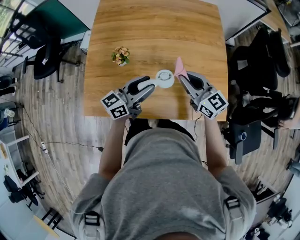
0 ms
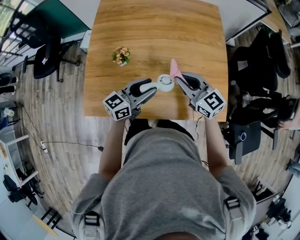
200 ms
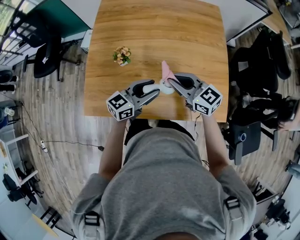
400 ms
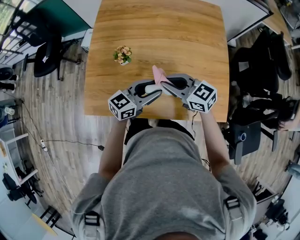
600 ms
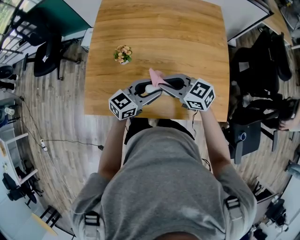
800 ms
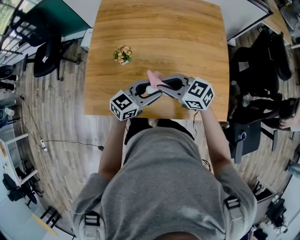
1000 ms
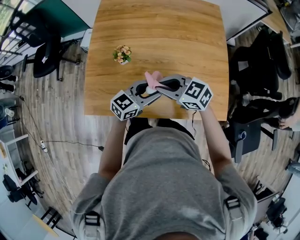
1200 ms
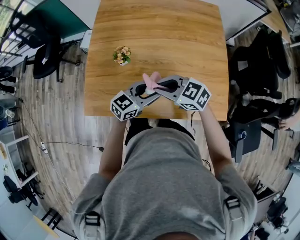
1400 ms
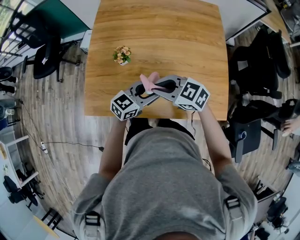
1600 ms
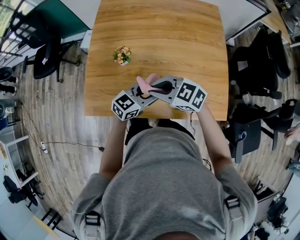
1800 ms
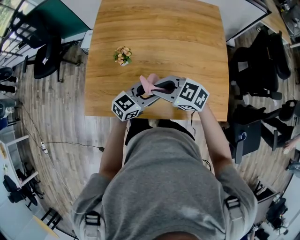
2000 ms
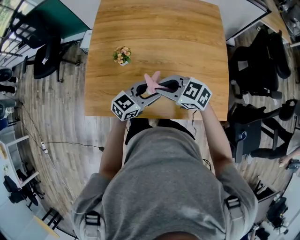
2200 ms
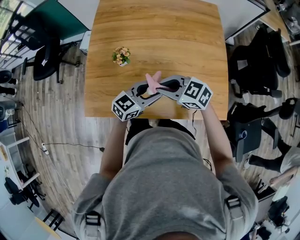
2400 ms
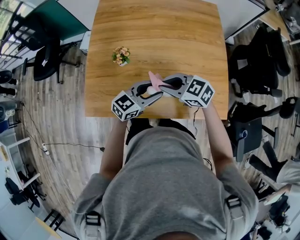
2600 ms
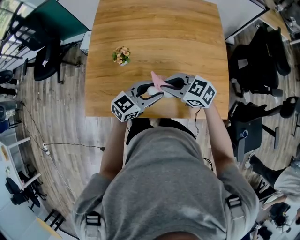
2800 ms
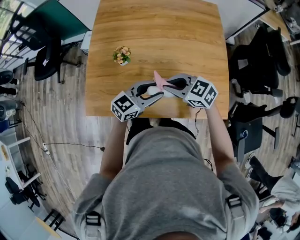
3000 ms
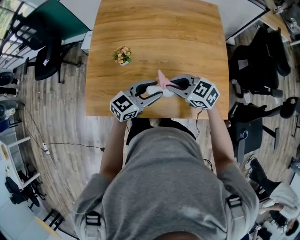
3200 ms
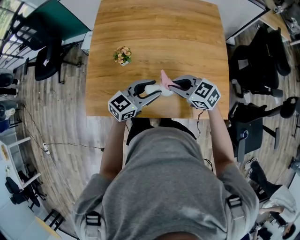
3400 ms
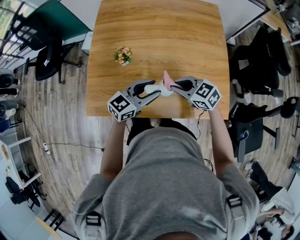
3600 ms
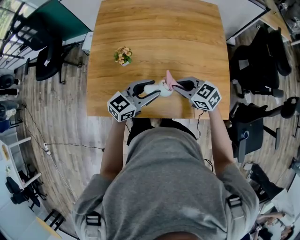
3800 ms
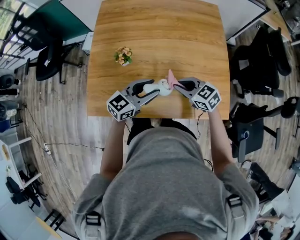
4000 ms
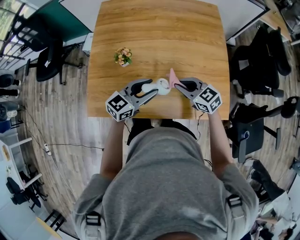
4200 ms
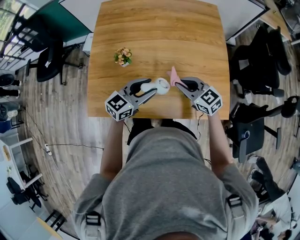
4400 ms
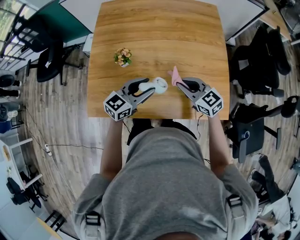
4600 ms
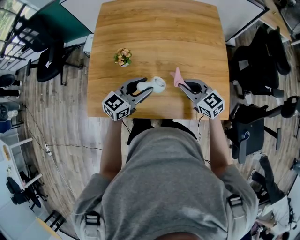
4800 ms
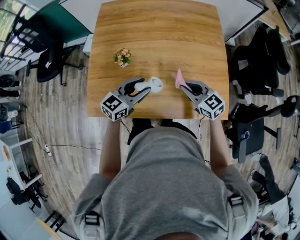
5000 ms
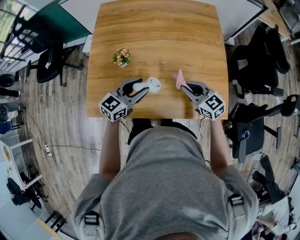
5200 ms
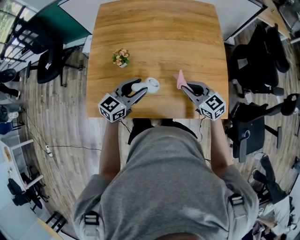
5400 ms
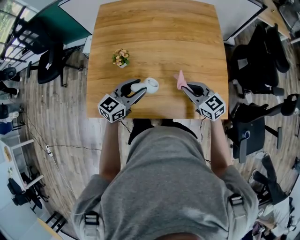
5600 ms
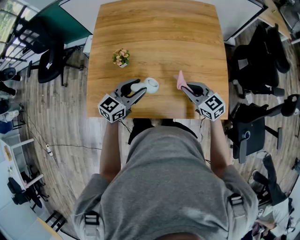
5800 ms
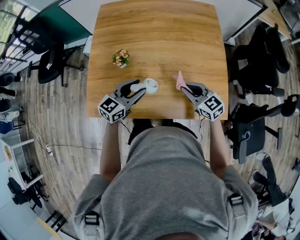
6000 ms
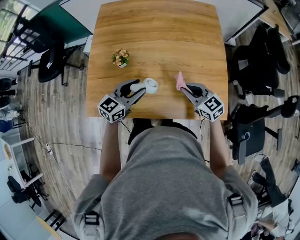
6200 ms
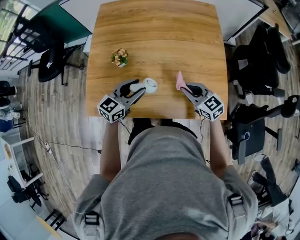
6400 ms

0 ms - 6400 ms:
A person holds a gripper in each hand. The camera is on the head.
0 ms - 1600 ms: The right gripper moves approximately 15 cm, and swivels approximately 40 degrees. The left gripper shifts by some 5 cm, and swivels approximately 20 degrees.
1600 ms - 3200 ms: The right gripper moves some 5 cm.
3200 ms - 4800 ms: The right gripper moves about 5 cm, and turns by roughly 20 degrees.
4800 ms - 6400 ms: The grippers make only small movements.

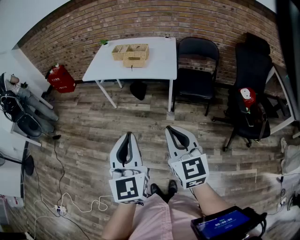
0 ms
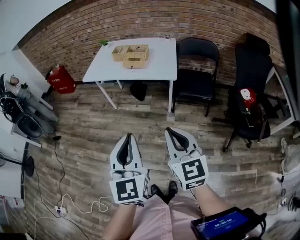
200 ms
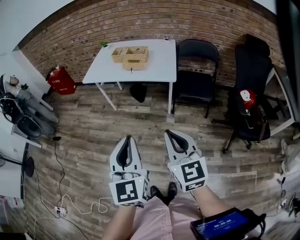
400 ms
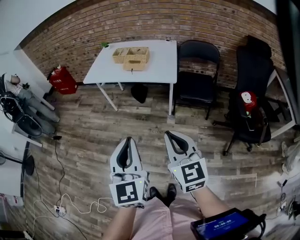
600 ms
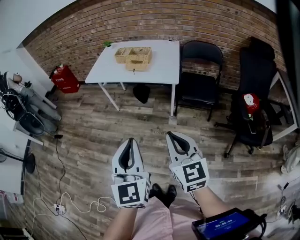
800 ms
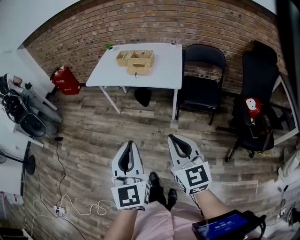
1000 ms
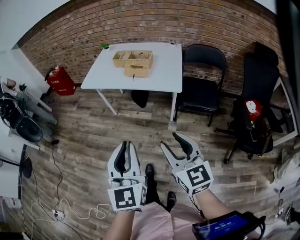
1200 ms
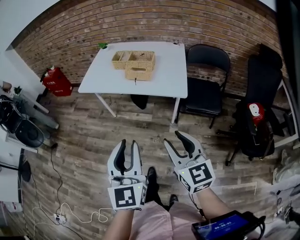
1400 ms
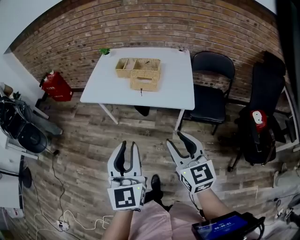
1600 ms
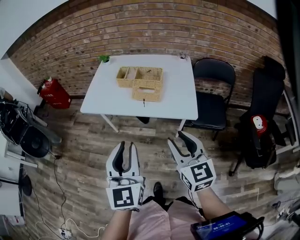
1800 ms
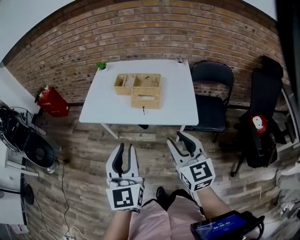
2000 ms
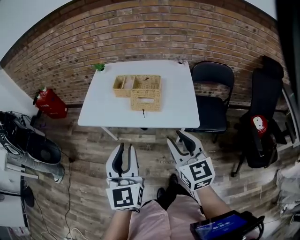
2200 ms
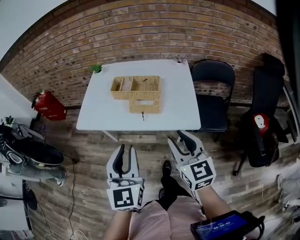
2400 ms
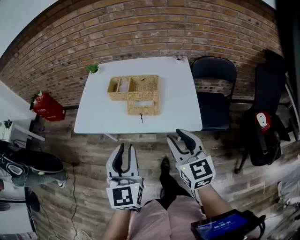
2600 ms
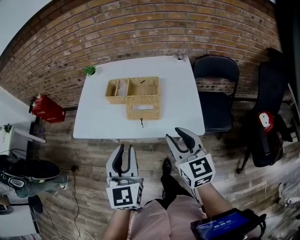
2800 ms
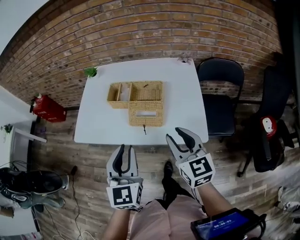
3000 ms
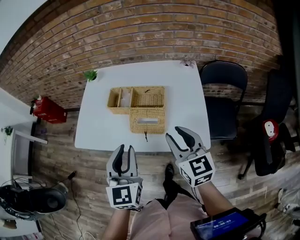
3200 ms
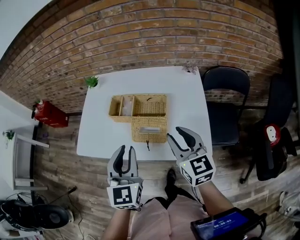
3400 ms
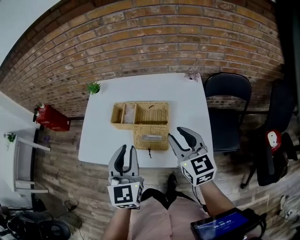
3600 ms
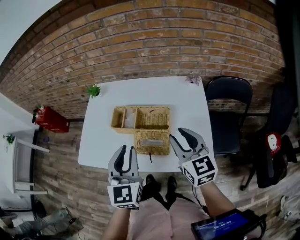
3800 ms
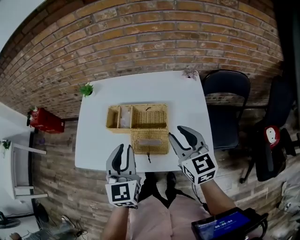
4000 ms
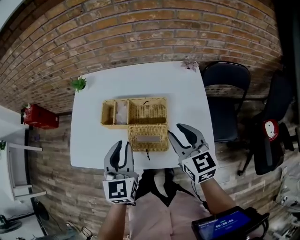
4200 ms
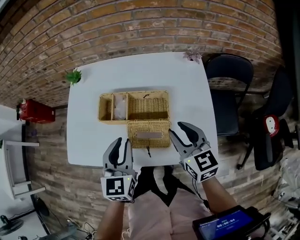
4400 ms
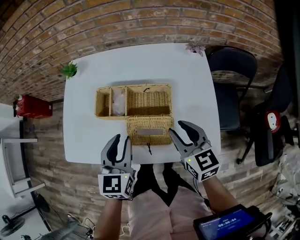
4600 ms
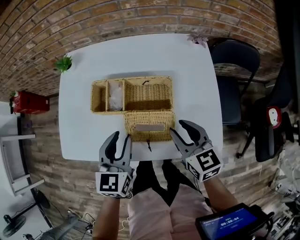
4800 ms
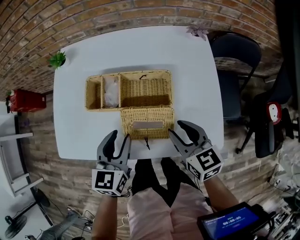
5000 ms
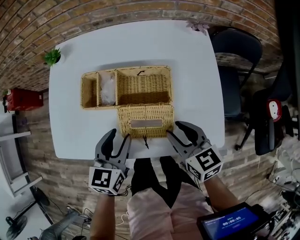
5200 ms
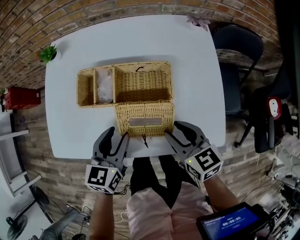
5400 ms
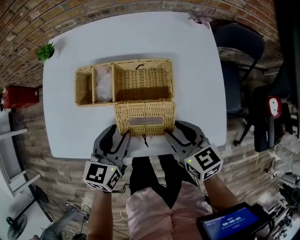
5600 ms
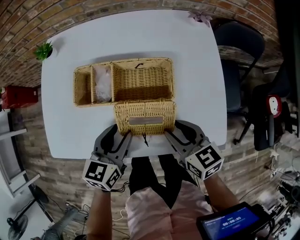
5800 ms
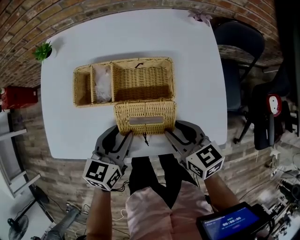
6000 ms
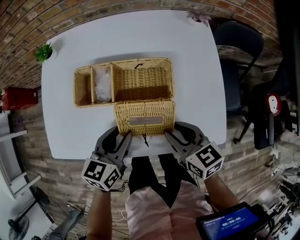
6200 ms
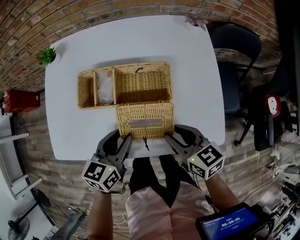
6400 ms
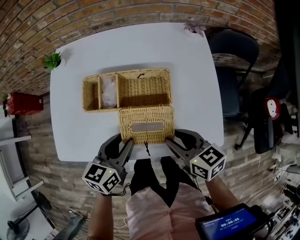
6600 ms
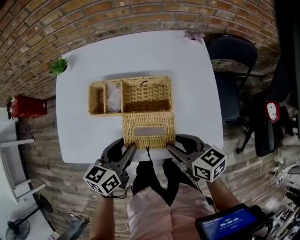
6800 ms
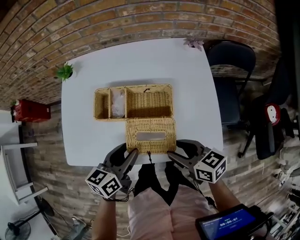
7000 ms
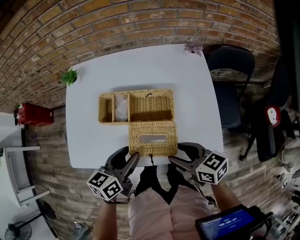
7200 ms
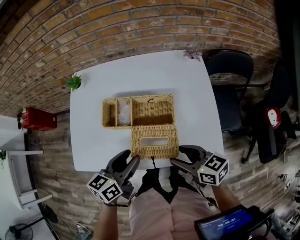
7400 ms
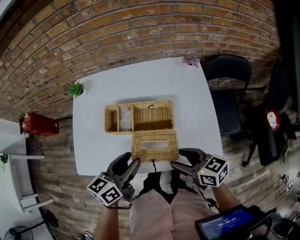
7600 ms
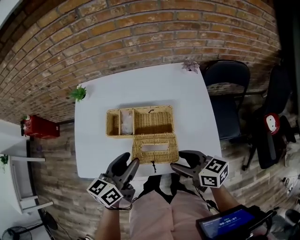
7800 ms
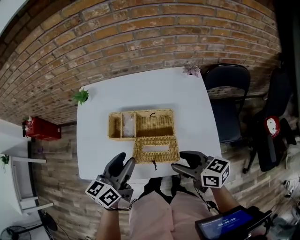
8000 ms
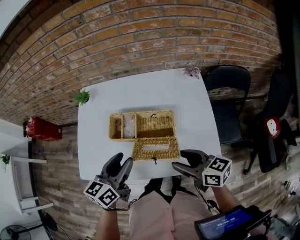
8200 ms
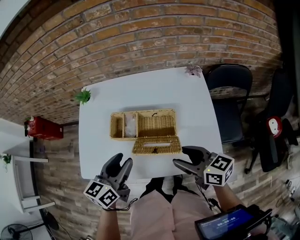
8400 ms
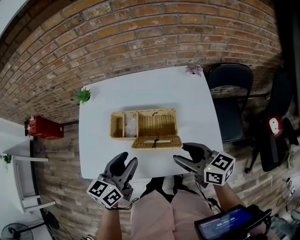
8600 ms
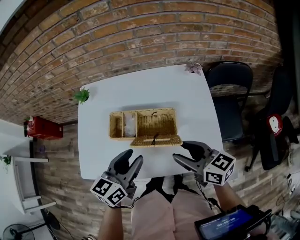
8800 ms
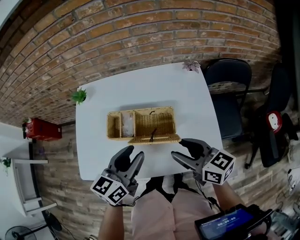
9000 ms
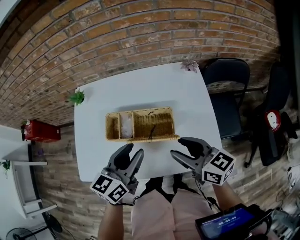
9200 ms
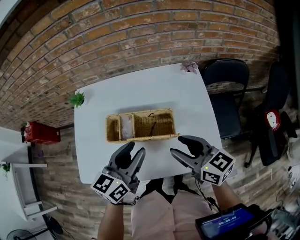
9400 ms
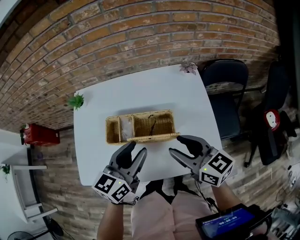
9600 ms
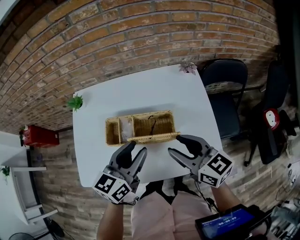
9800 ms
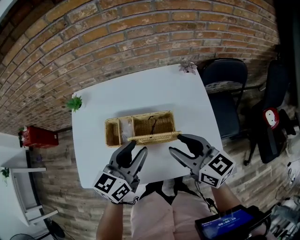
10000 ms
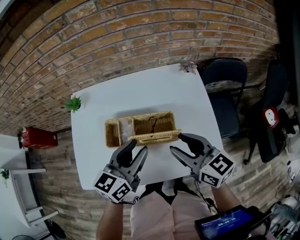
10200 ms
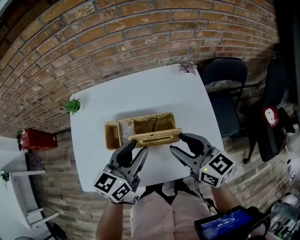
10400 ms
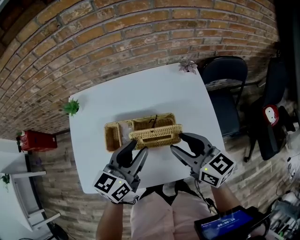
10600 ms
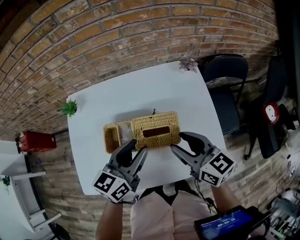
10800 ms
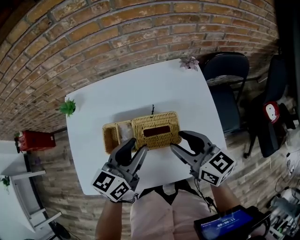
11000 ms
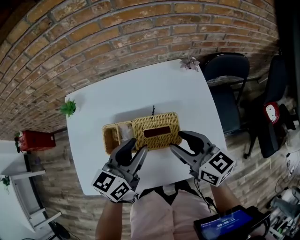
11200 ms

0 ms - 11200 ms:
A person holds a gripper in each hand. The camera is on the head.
0 ms - 1600 ms: Both grippers move forward, roughly 25 cm. The left gripper opens up. Meanwhile the right gripper opens.
1600 ms - 3200 ms: The two grippers go roughly 30 cm forward.
3200 ms - 4800 ms: The right gripper moves downward and forward, some 15 cm; the left gripper goes some 20 cm forward and downward.
4800 ms - 6400 ms: The two grippers go some 5 cm downward. The left gripper turns by some 20 degrees.
6400 ms - 8000 ms: The grippers both shift upward by some 10 cm. The right gripper opens its fingers.
8000 ms - 9600 ms: The right gripper moves forward and upward, some 10 cm. Meanwhile the left gripper shifts roughly 5 cm to the right.
9600 ms - 11200 ms: The grippers both shift forward by some 5 cm.

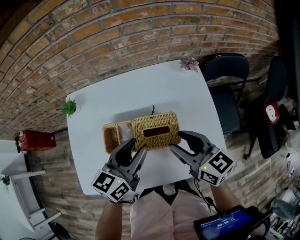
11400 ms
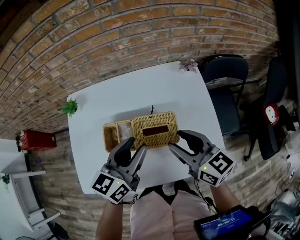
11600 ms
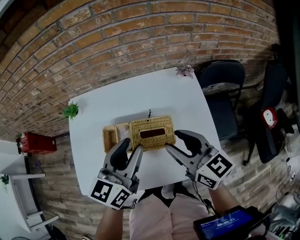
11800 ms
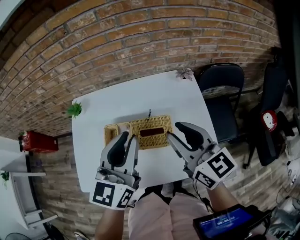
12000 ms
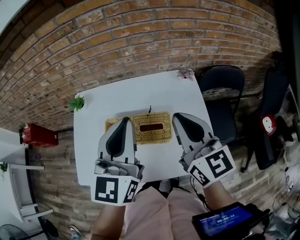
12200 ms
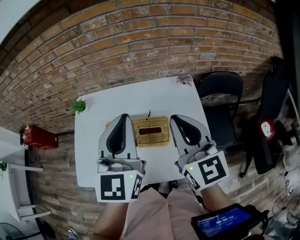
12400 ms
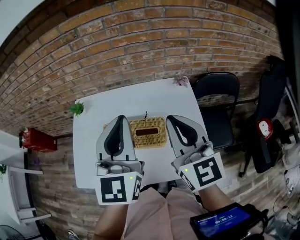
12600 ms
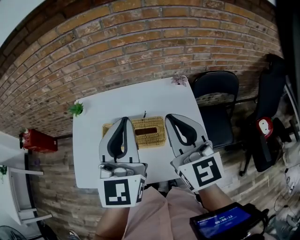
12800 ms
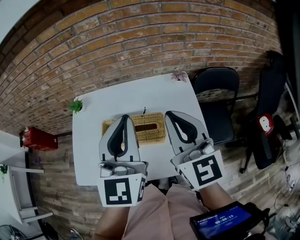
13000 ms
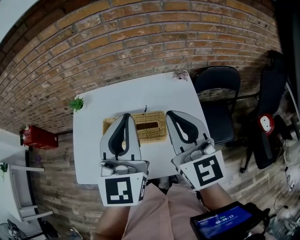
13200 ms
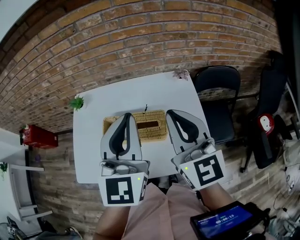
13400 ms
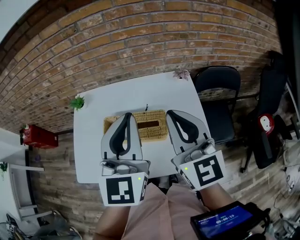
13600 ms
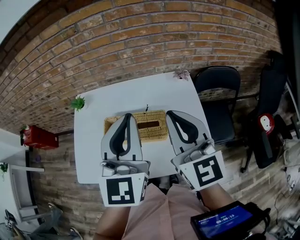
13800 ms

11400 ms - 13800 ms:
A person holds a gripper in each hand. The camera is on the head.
11400 ms - 12600 ms: The two grippers go approximately 20 cm upward. The left gripper rotates about 40 degrees, and closes its fingers, while the right gripper turns by approximately 30 degrees, and closes up.
12600 ms - 13800 ms: The grippers stay close to where they were, moving slightly.

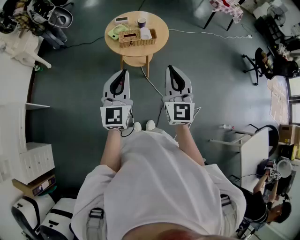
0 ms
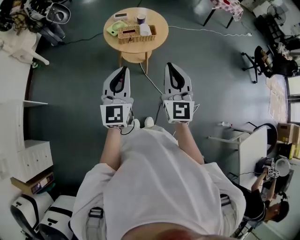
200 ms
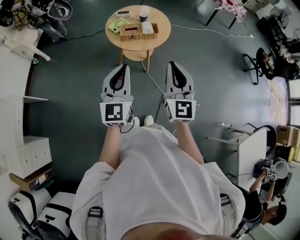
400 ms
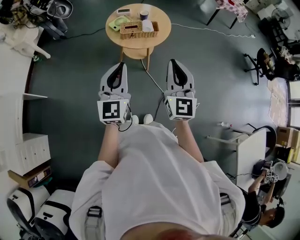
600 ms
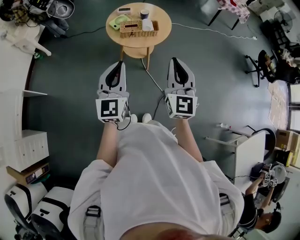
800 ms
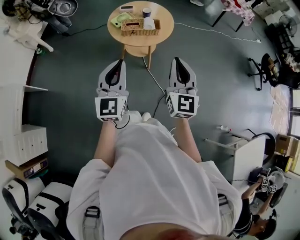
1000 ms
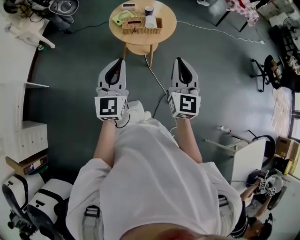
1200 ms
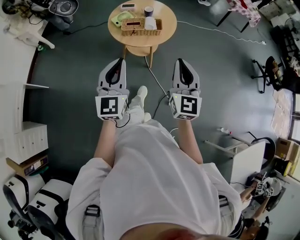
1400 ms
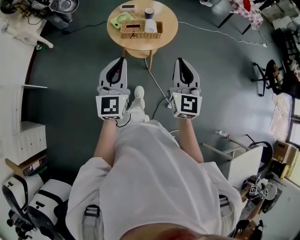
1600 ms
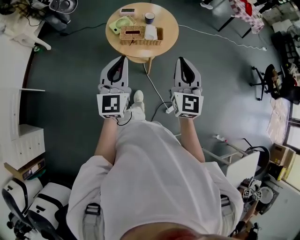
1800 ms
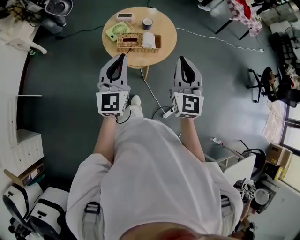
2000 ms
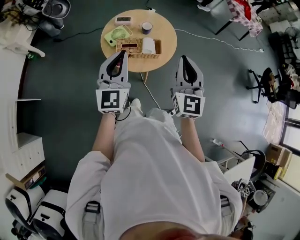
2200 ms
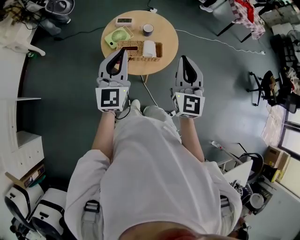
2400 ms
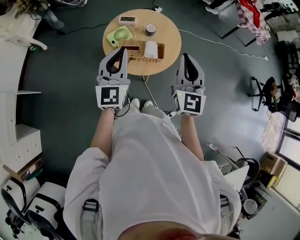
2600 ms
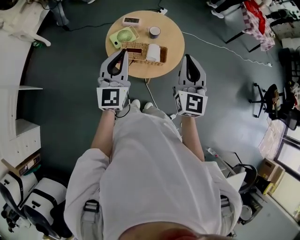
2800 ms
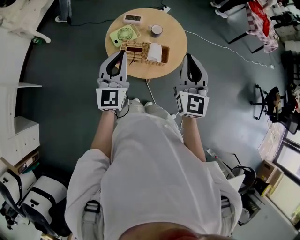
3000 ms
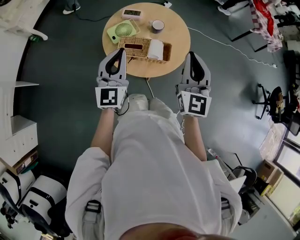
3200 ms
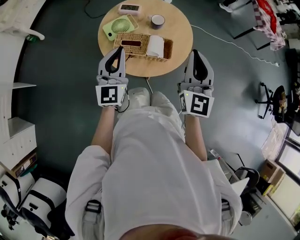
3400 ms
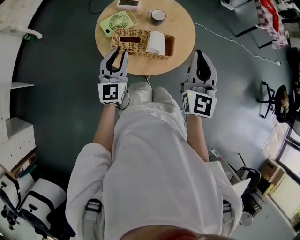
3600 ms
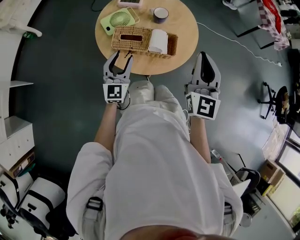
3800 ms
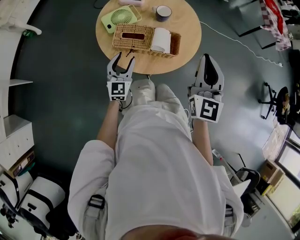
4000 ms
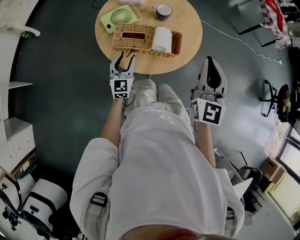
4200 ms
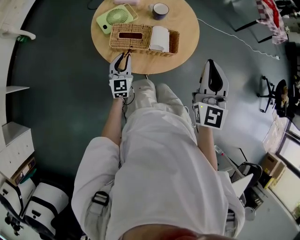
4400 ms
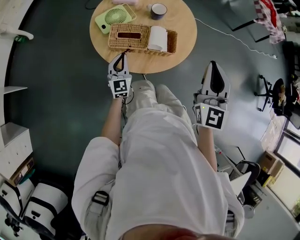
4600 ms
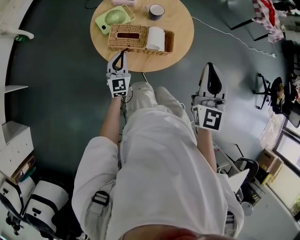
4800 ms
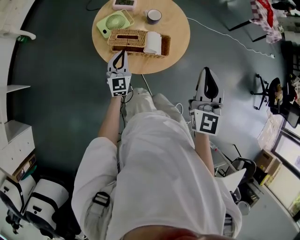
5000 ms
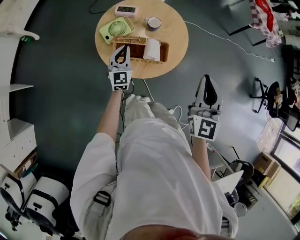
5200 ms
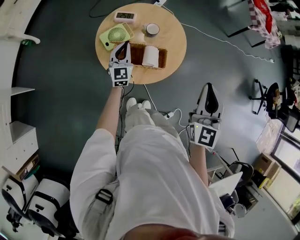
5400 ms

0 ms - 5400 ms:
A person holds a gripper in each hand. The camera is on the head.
0 ms - 1400 ms: The right gripper moves to the right and forward, approximately 10 cm; the left gripper heads forward, covering some 5 cm.
1400 ms - 2800 ms: Both grippers travel together forward, approximately 35 cm.
2800 ms - 4000 ms: The right gripper moves downward, some 20 cm. The left gripper is displaced downward by some 40 cm, and opens up.
4000 ms - 5400 ms: The left gripper goes some 20 cm upward and forward, and closes its fingers. The right gripper is displaced upward by about 15 cm.
